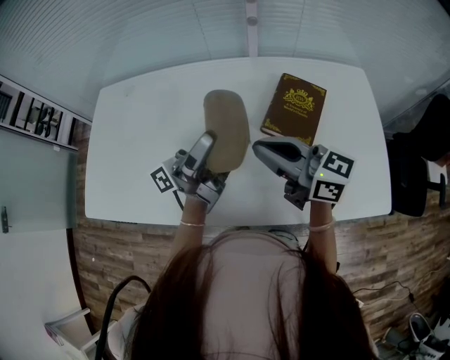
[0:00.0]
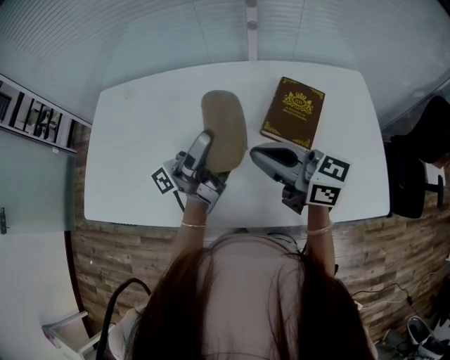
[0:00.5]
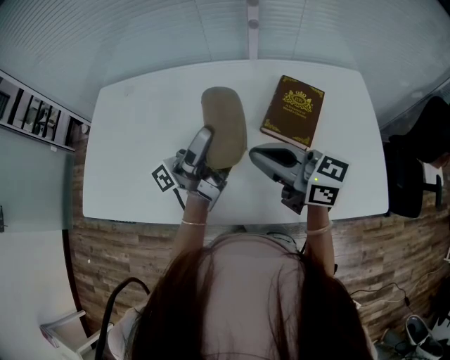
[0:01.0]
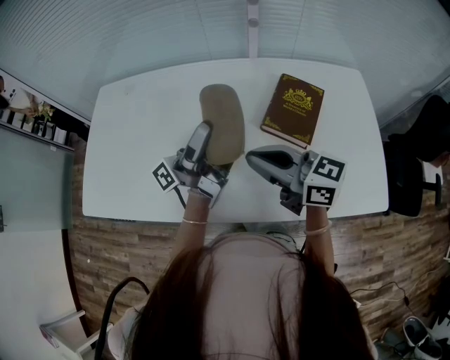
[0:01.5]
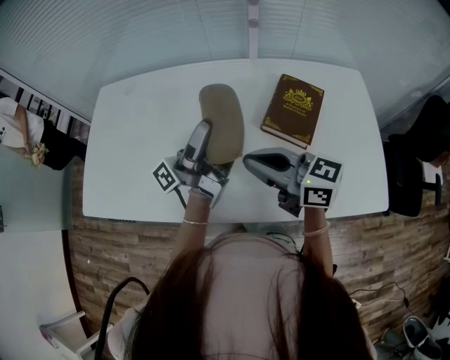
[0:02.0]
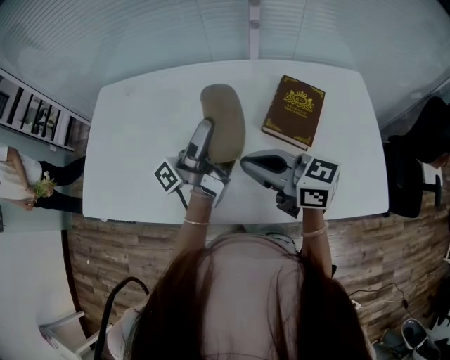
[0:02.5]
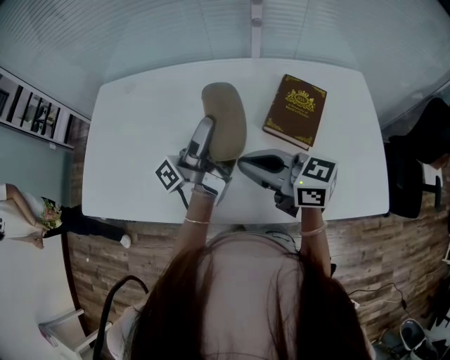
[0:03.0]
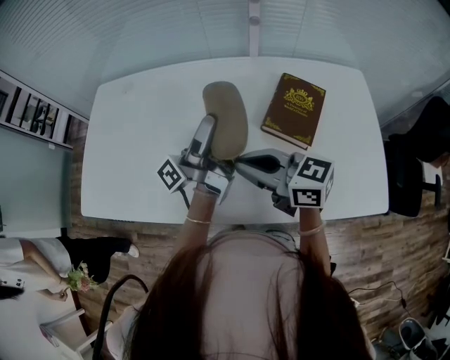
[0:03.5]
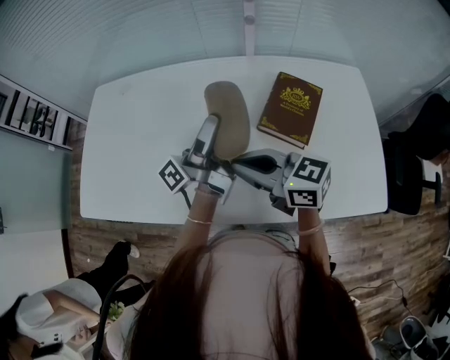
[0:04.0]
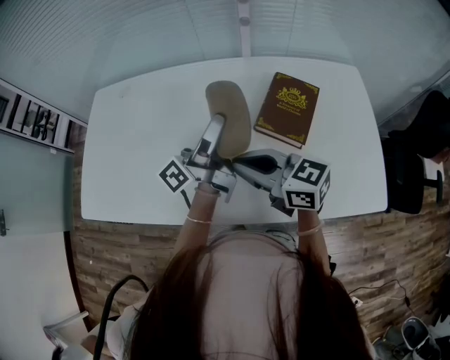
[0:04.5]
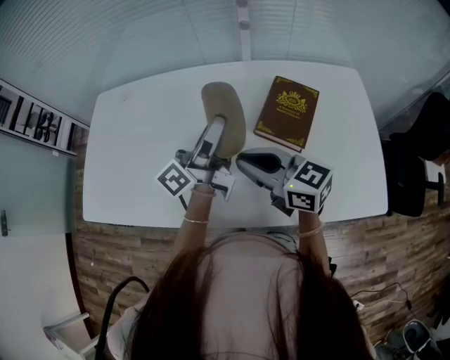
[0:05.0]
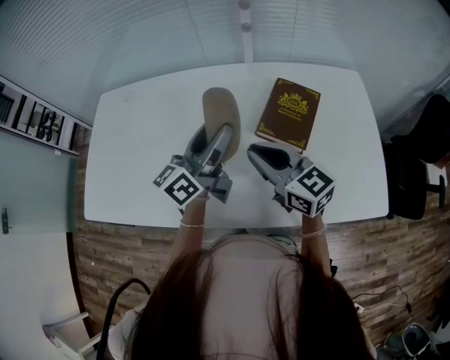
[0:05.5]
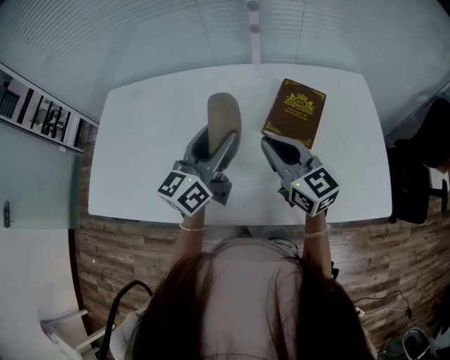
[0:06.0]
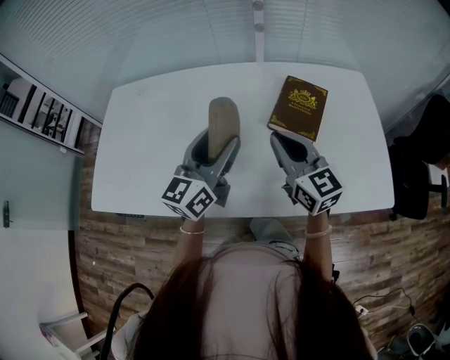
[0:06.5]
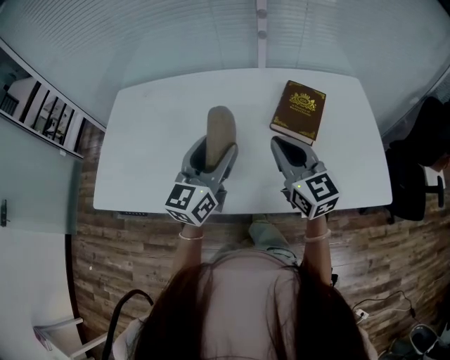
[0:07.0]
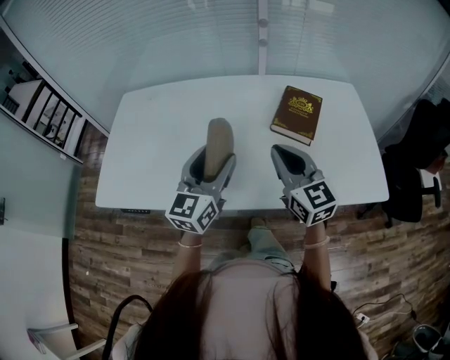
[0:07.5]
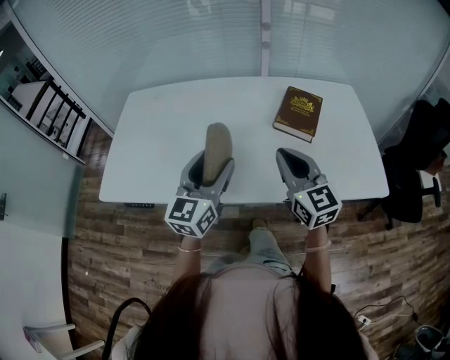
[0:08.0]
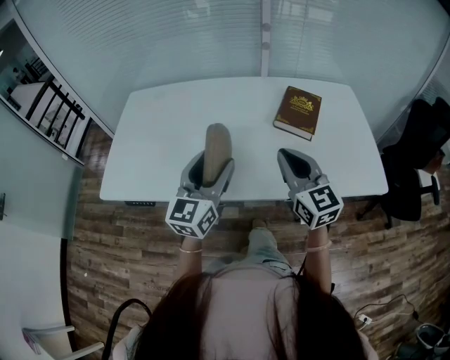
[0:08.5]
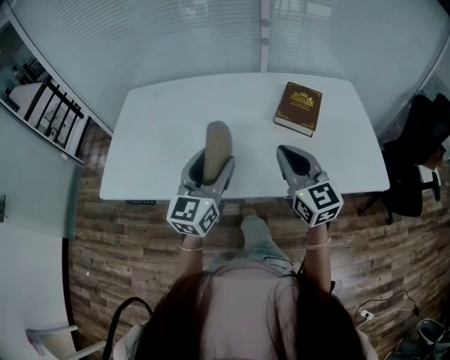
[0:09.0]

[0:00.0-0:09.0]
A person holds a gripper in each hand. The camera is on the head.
0:00.0 to 0:02.0: The right gripper shifts by roughly 5 cm.
0:02.0 to 0:04.5: The grippers stay close to where they were, moving slightly.
0:04.5 to 0:07.0: The left gripper is displaced backward and to the left by about 10 cm, and rotates around the line of its fingers by some 60 degrees, clockwise from behind. The right gripper changes its angle by some 40 degrees.
0:07.0 to 0:09.0: Both grippers travel together backward, approximately 10 cm.

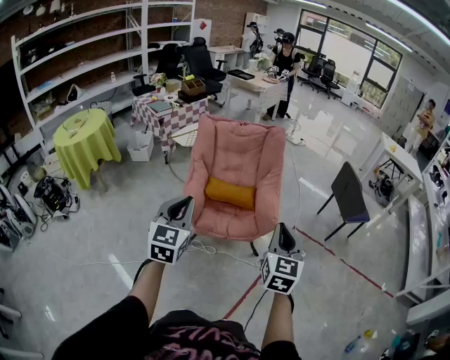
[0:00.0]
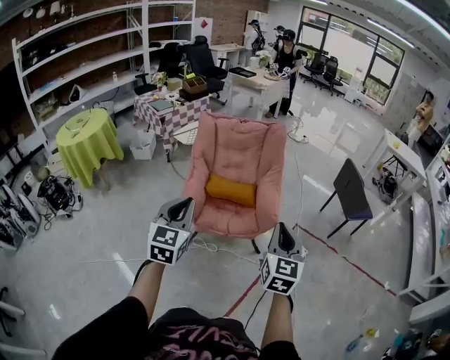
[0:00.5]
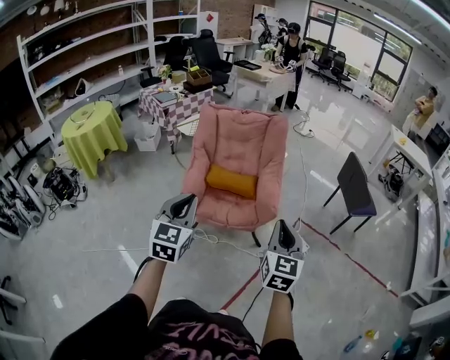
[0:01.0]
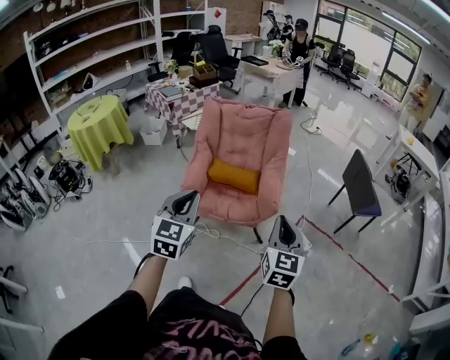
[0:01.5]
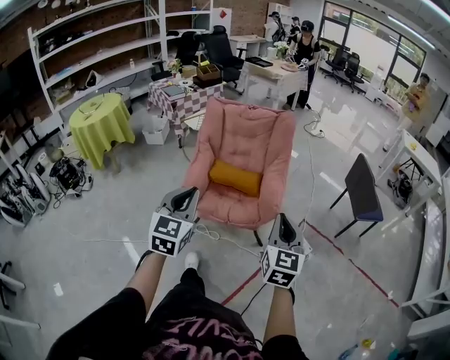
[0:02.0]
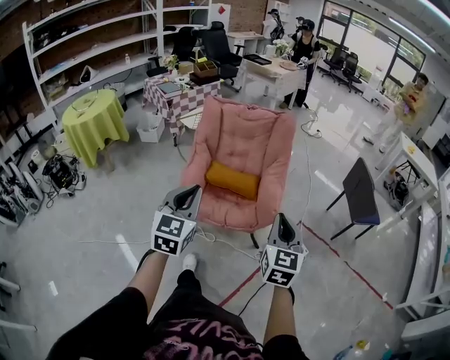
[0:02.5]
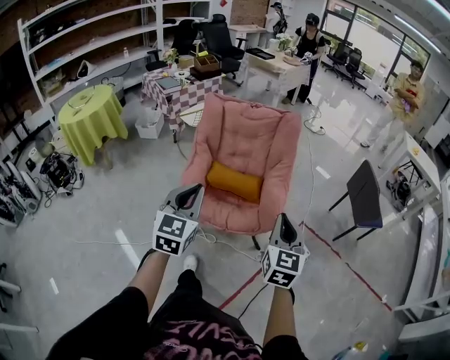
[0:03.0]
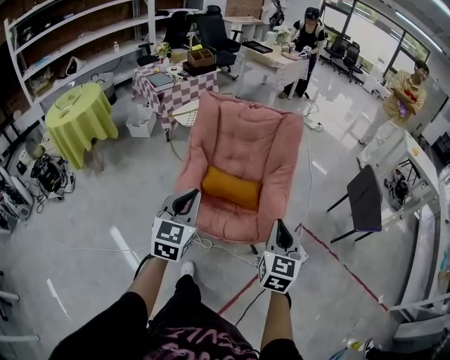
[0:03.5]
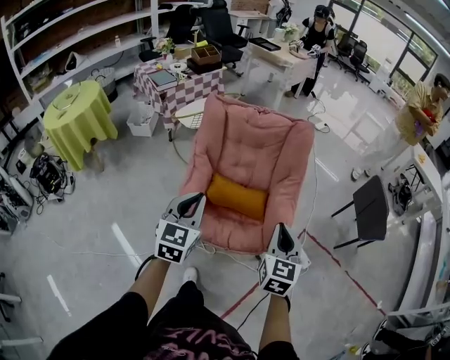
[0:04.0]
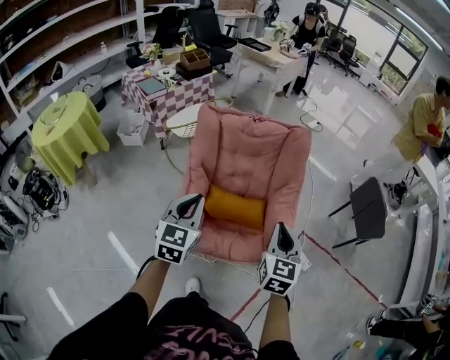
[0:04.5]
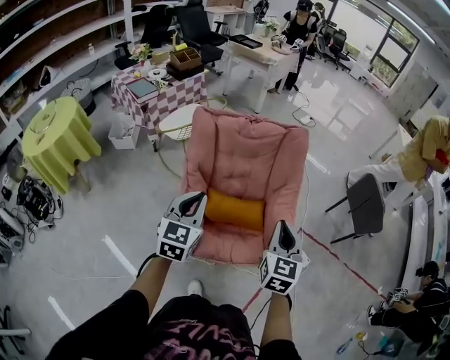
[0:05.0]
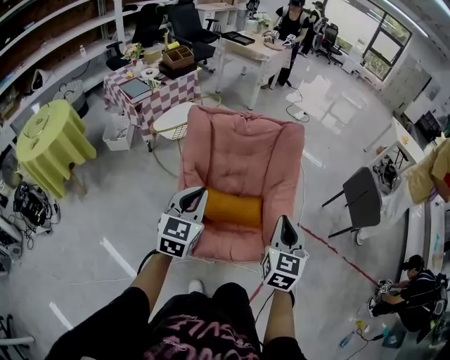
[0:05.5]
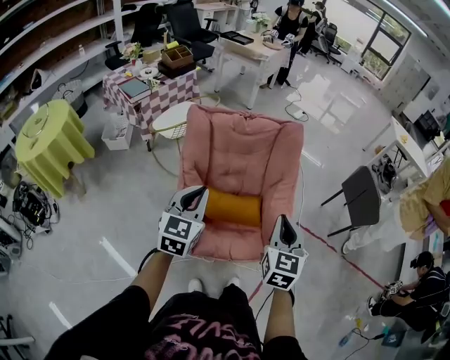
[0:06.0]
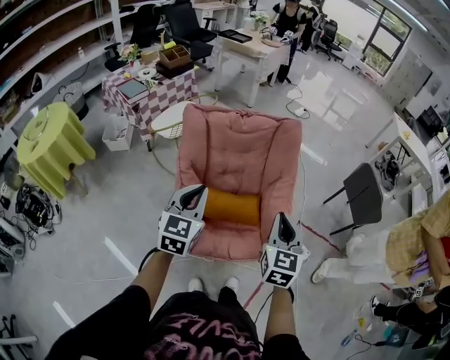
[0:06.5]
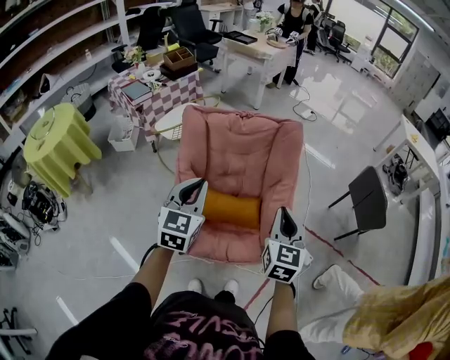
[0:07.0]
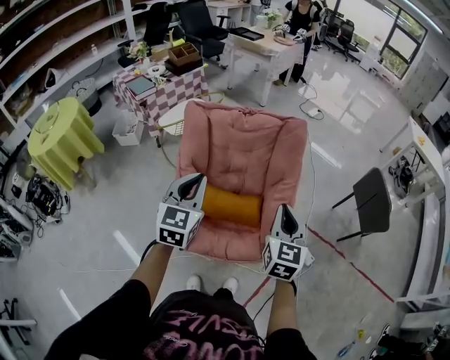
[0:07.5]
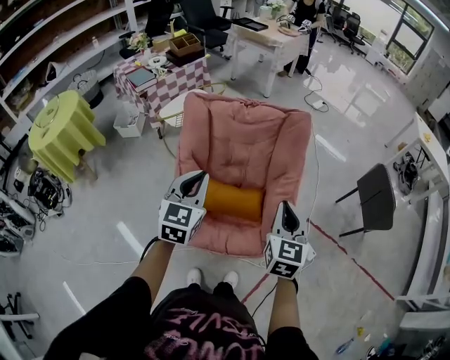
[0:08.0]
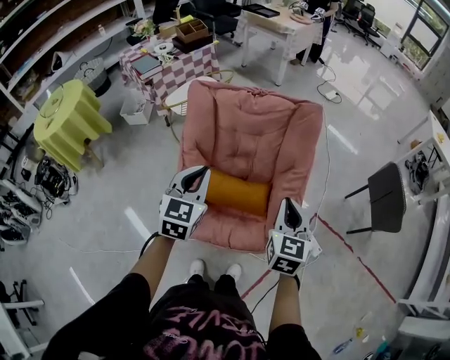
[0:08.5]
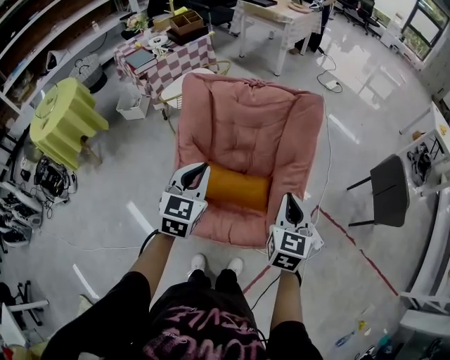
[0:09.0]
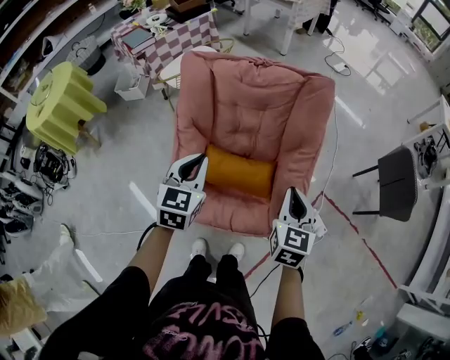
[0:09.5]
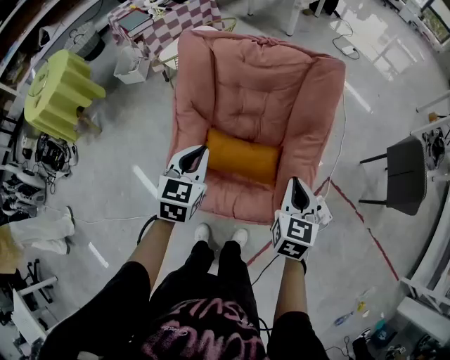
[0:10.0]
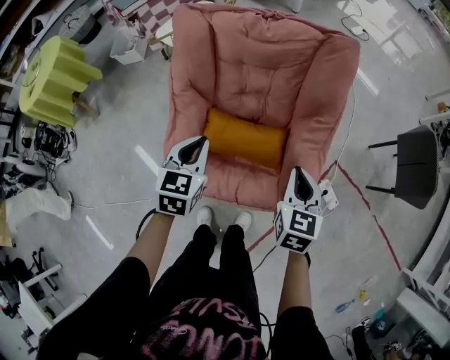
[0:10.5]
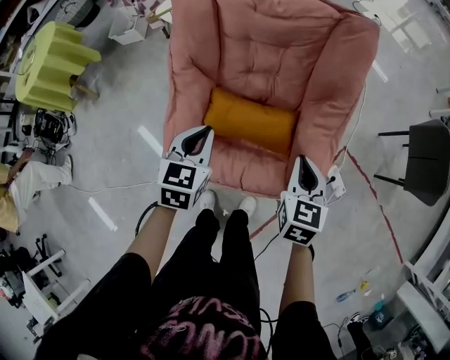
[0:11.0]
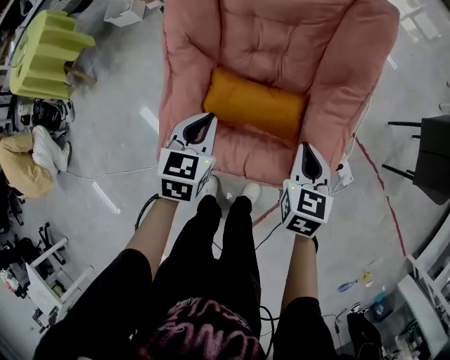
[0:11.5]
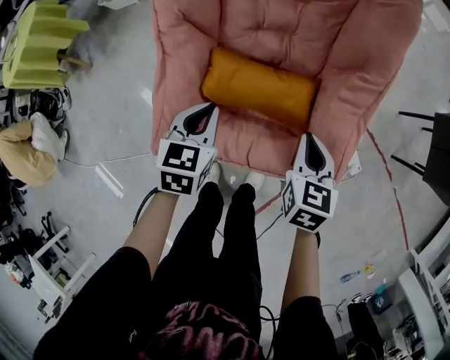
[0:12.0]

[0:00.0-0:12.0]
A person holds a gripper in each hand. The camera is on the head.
0:00.0 to 0:02.0: The two grippers go approximately 10 cm to the right.
0:02.0 to 0:04.0: The right gripper shifts some 30 cm forward and to the left. The left gripper is displaced forward by roughly 30 cm.
0:04.0 to 0:06.0: Both grippers travel together forward and to the left, approximately 10 cm.
0:06.0 to 0:08.0: The right gripper moves forward and to the right, approximately 10 cm, while the left gripper moves to the right and forward, roughly 10 cm.
0:08.0 to 0:10.0: The left gripper travels downward by roughly 15 cm. The right gripper moves downward and forward, some 15 cm.
0:10.0 to 0:12.0: The grippers both shift downward by about 20 cm.

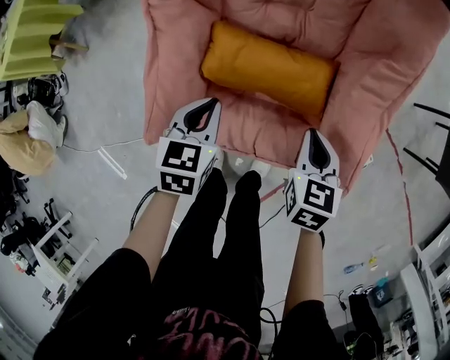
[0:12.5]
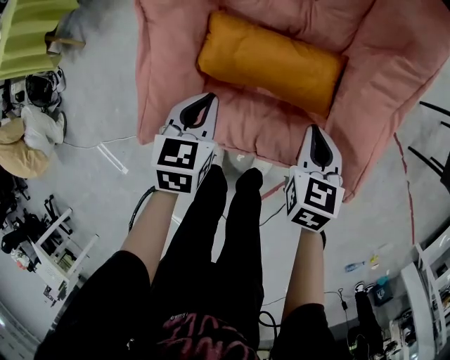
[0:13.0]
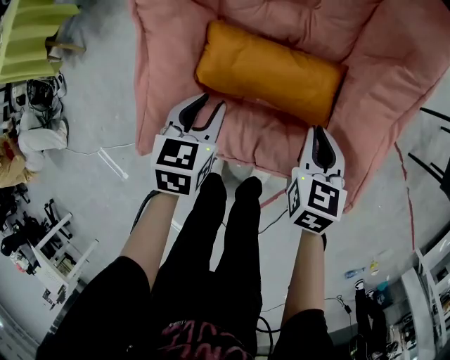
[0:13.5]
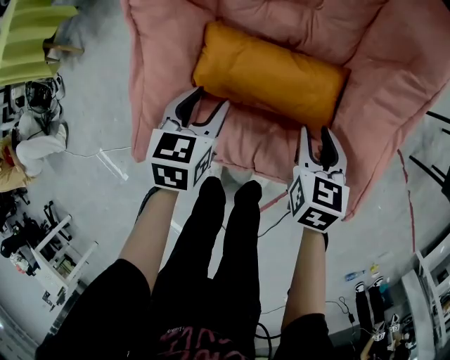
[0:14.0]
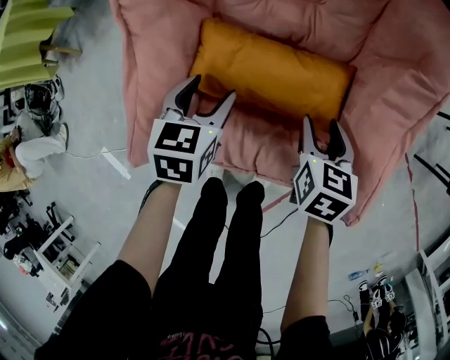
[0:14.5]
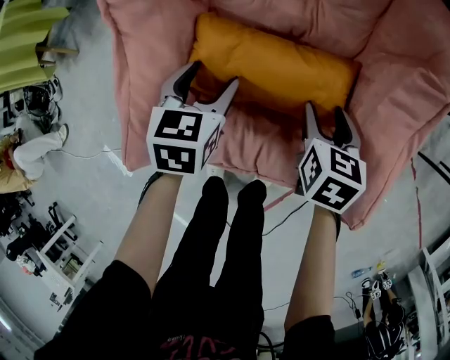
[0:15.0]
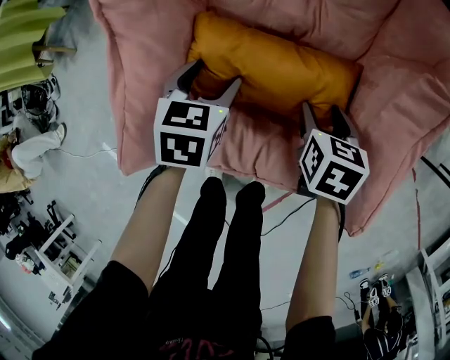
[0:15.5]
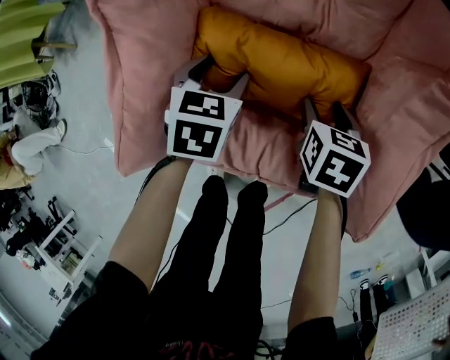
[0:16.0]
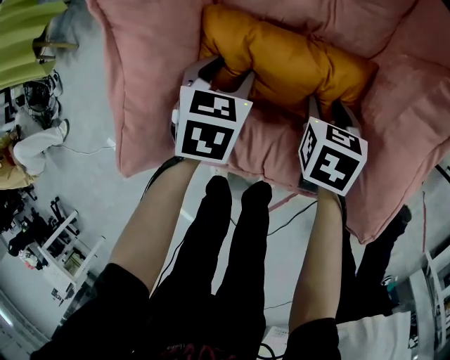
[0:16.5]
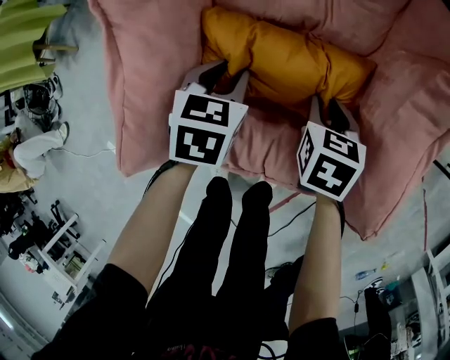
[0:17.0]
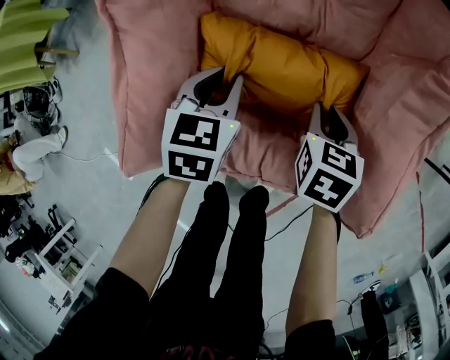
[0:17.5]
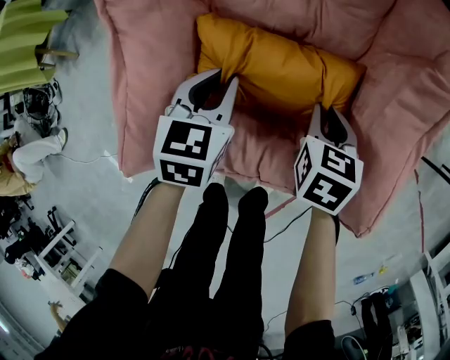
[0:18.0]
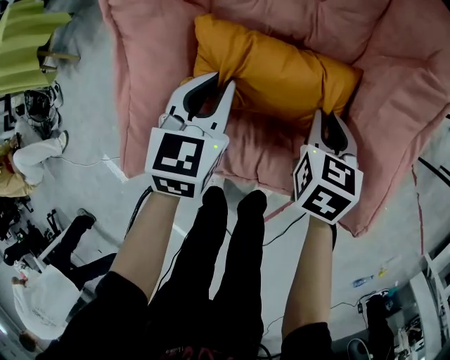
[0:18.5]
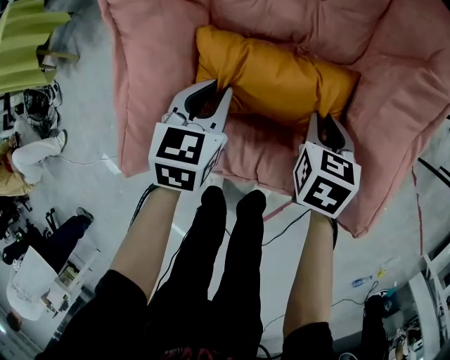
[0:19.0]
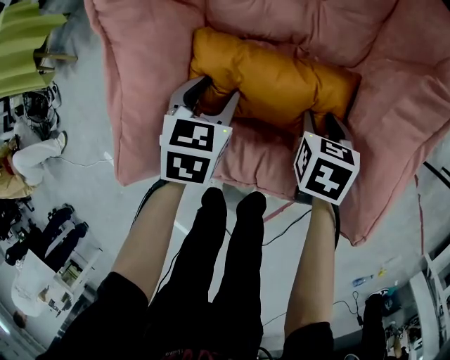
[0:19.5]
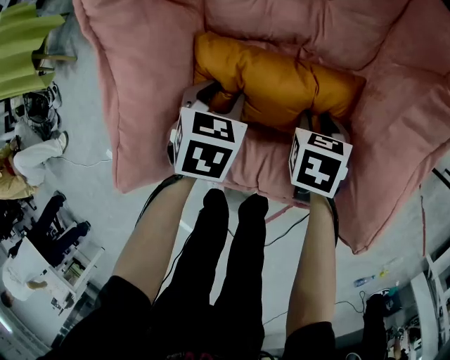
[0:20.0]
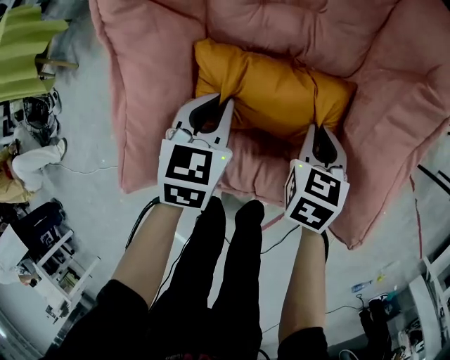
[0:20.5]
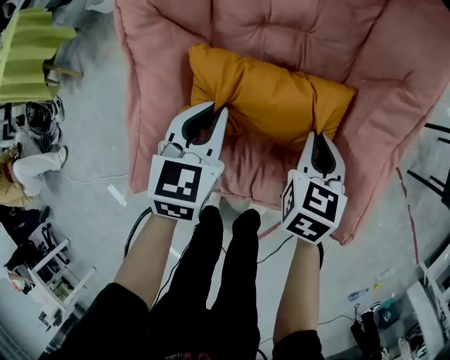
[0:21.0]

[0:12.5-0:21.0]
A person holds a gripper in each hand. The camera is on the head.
0:12.5 to 0:14.5: Both grippers travel together downward and forward, some 10 cm. The right gripper opens; the left gripper opens.
0:14.5 to 0:16.5: Both grippers move downward, some 10 cm.
0:16.5 to 0:19.0: The grippers both shift upward by approximately 5 cm. The right gripper closes. Meanwhile the left gripper closes its fingers.
0:19.0 to 0:21.0: The two grippers go about 10 cm upward. The left gripper opens and closes again. Meanwhile the right gripper opens, then closes again.
